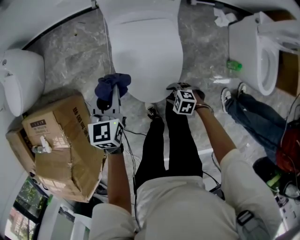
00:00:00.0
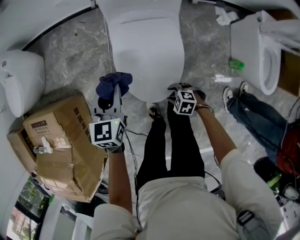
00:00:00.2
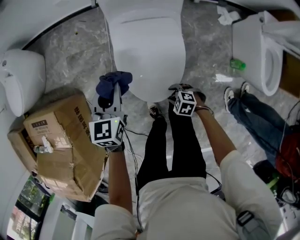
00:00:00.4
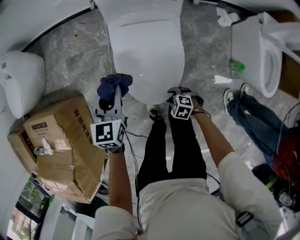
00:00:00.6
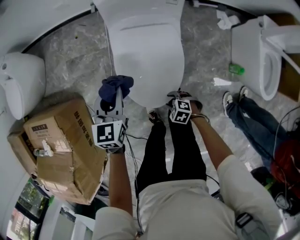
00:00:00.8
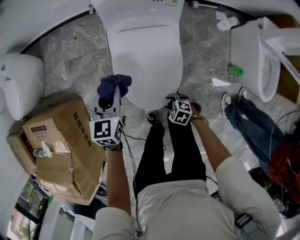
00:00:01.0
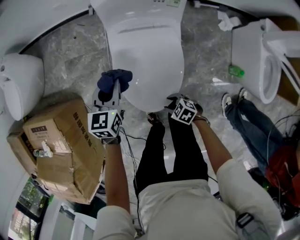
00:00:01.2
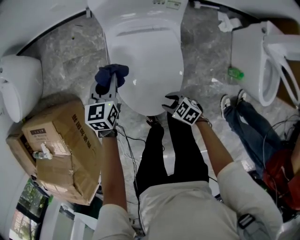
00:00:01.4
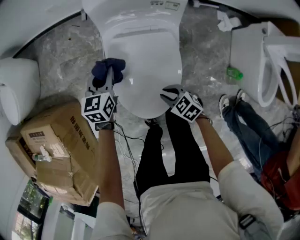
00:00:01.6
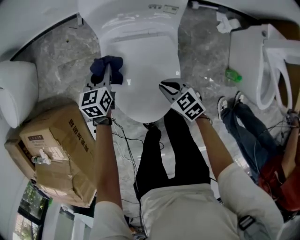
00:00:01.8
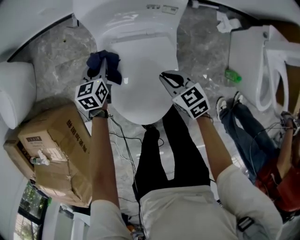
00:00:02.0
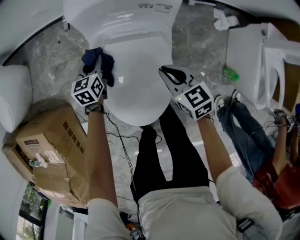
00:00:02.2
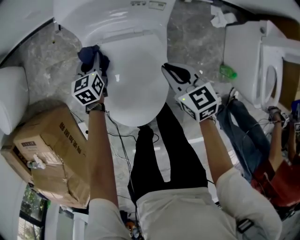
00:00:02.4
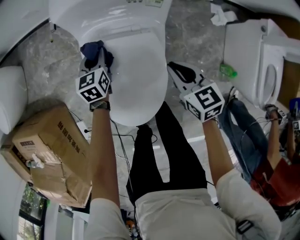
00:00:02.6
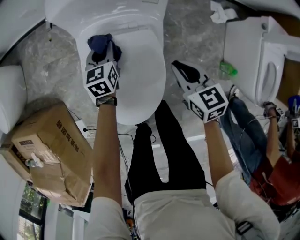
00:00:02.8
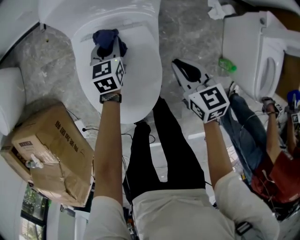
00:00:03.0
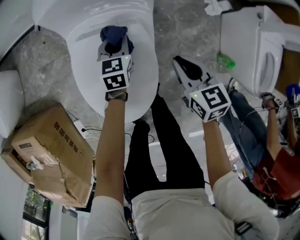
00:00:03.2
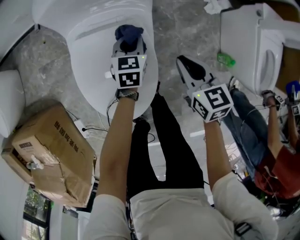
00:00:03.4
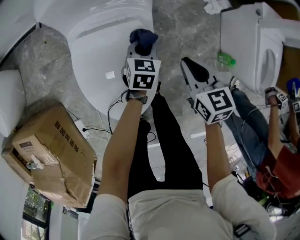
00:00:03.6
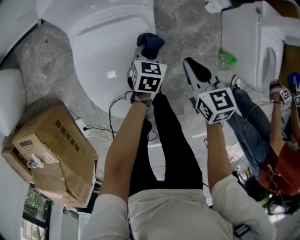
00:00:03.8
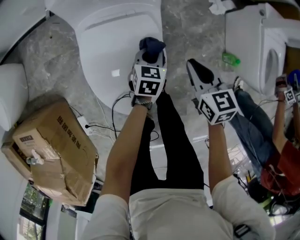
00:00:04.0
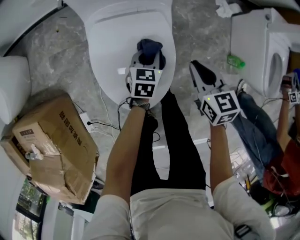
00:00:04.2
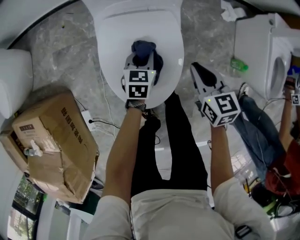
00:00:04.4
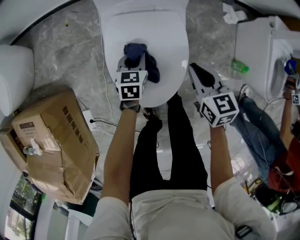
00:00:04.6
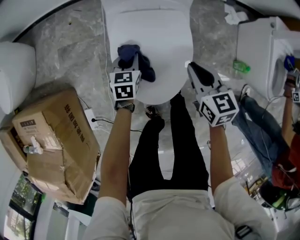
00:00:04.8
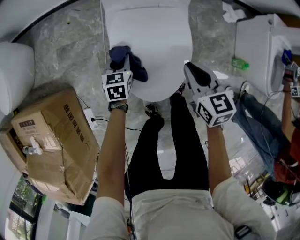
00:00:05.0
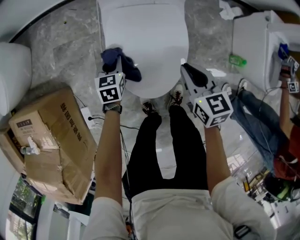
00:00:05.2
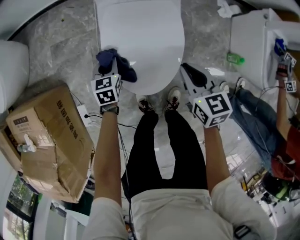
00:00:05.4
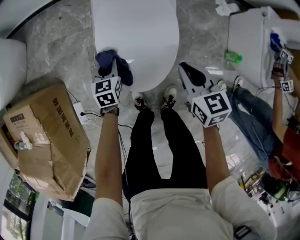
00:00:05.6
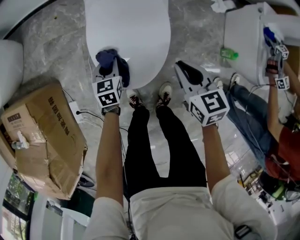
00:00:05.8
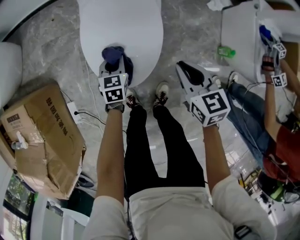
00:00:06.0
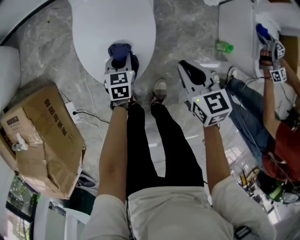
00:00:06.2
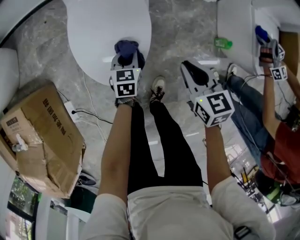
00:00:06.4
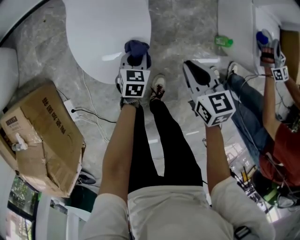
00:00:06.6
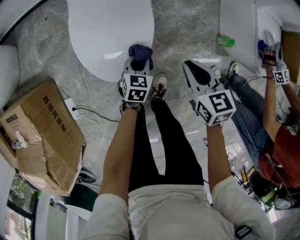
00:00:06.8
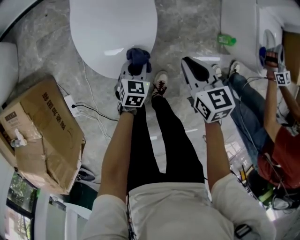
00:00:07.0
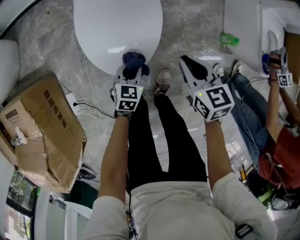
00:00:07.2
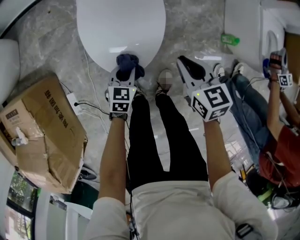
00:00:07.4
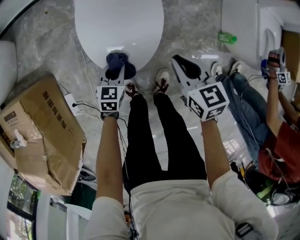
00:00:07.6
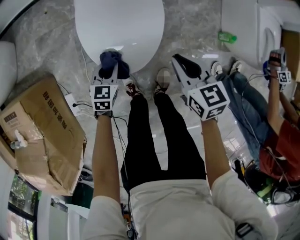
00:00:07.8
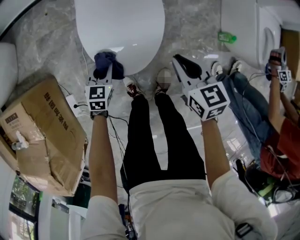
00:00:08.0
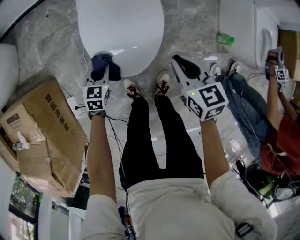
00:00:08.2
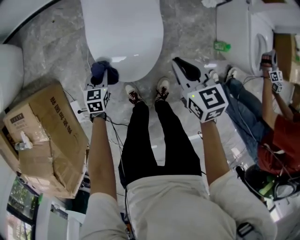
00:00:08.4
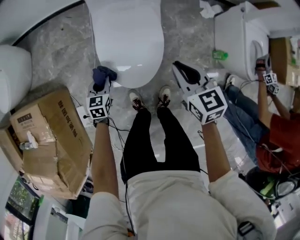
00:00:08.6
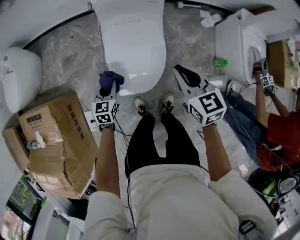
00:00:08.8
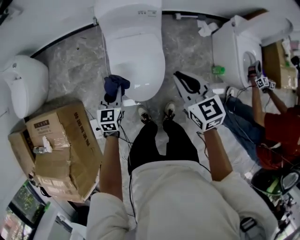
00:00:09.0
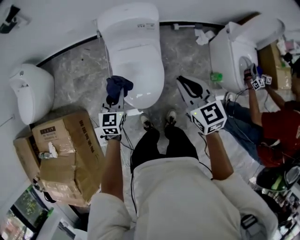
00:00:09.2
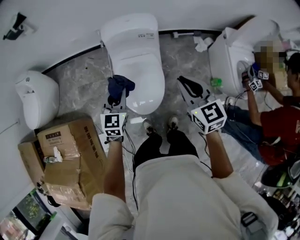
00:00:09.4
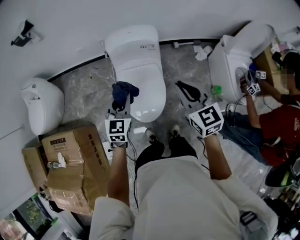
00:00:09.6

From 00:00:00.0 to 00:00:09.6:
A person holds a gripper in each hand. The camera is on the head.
From 00:00:00.0 to 00:00:01.6: The right gripper goes some 10 cm forward and to the right, swivels some 30 degrees, and closes its fingers. The left gripper shifts approximately 20 cm downward, forward and to the right.
From 00:00:01.6 to 00:00:03.2: The right gripper goes roughly 25 cm to the right, forward and upward, and swivels roughly 40 degrees, while the left gripper heads to the right and downward, covering some 25 cm.
From 00:00:03.2 to 00:00:04.8: The right gripper travels to the left and backward by approximately 15 cm. The left gripper shifts roughly 20 cm backward and to the left.
From 00:00:04.8 to 00:00:06.4: Both grippers travel together to the right and backward, about 20 cm.
From 00:00:06.4 to 00:00:08.0: The left gripper shifts some 15 cm to the left and backward. Meanwhile the right gripper goes approximately 10 cm to the left.
From 00:00:08.0 to 00:00:09.6: The grippers both shift upward by about 40 cm. The left gripper rotates approximately 30 degrees. Meanwhile the right gripper turns by about 30 degrees.

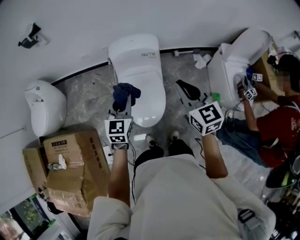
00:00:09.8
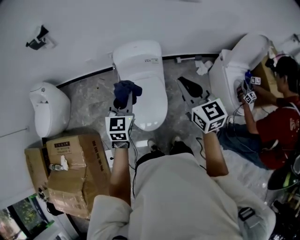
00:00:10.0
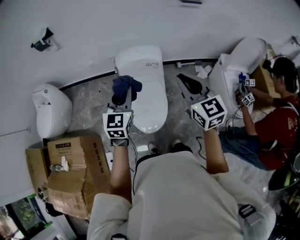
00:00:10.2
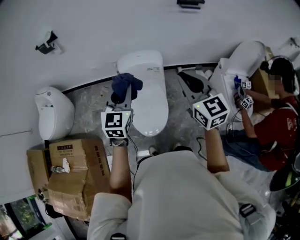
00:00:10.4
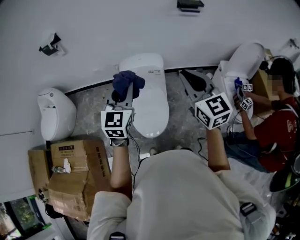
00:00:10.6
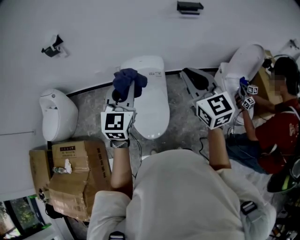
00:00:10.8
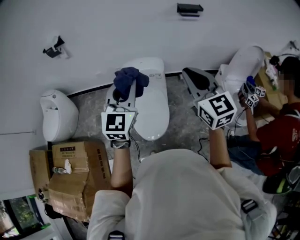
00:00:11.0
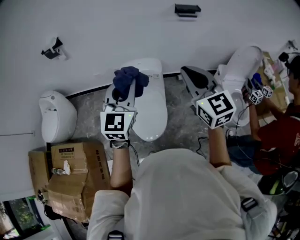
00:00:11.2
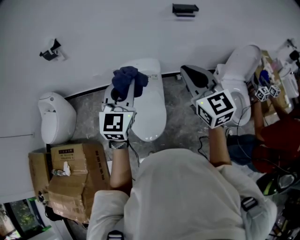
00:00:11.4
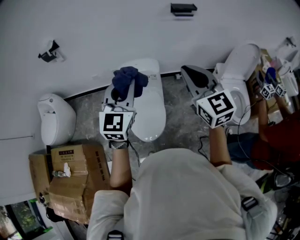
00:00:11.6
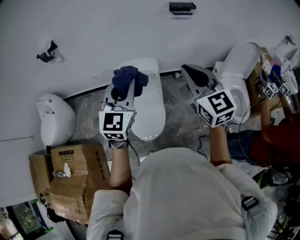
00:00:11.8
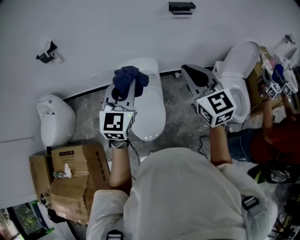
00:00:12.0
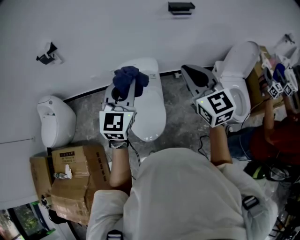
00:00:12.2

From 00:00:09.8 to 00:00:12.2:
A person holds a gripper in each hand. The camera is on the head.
From 00:00:09.8 to 00:00:11.0: The two grippers go roughly 20 cm upward. The left gripper changes its angle by approximately 20 degrees.
From 00:00:11.0 to 00:00:12.2: The grippers make only small movements.

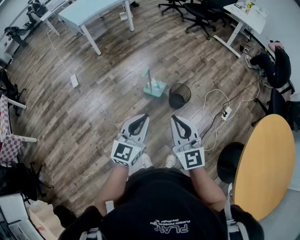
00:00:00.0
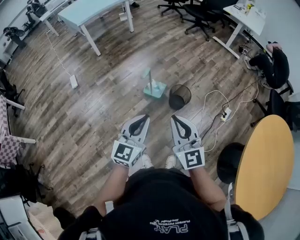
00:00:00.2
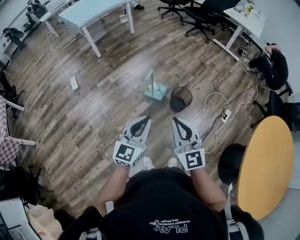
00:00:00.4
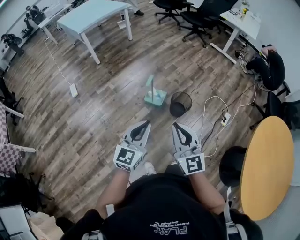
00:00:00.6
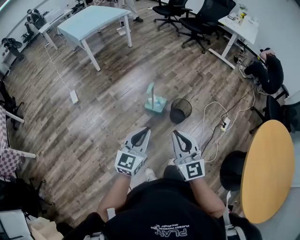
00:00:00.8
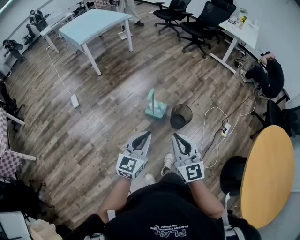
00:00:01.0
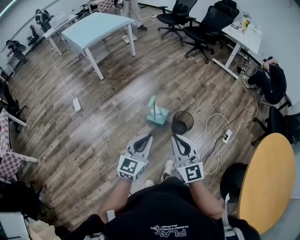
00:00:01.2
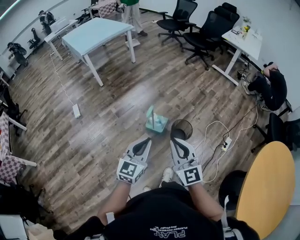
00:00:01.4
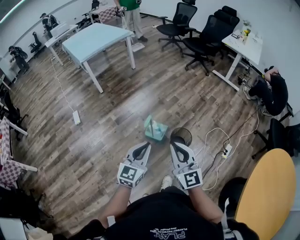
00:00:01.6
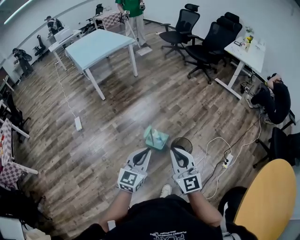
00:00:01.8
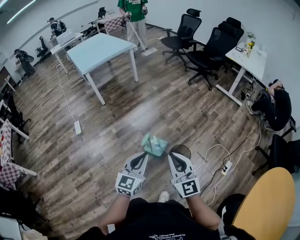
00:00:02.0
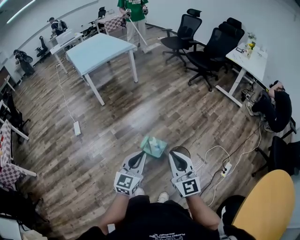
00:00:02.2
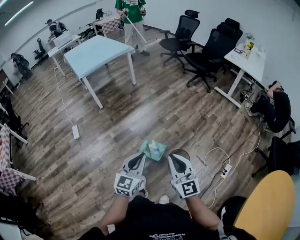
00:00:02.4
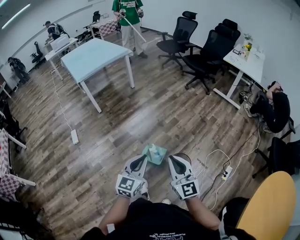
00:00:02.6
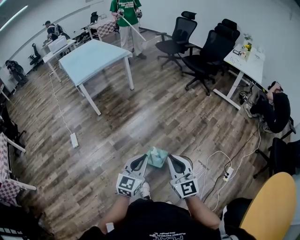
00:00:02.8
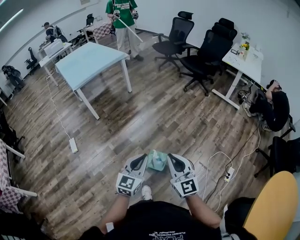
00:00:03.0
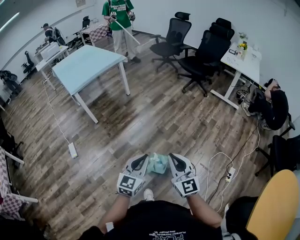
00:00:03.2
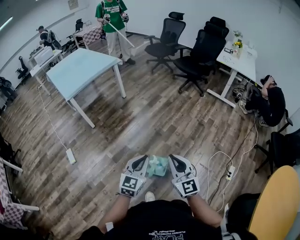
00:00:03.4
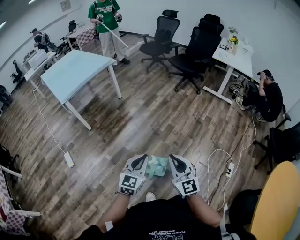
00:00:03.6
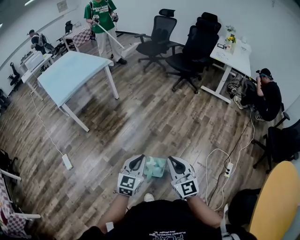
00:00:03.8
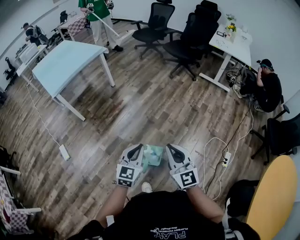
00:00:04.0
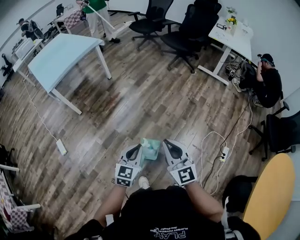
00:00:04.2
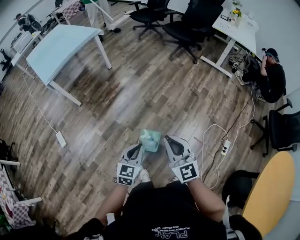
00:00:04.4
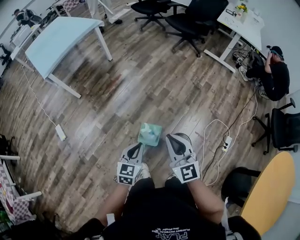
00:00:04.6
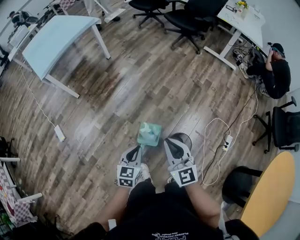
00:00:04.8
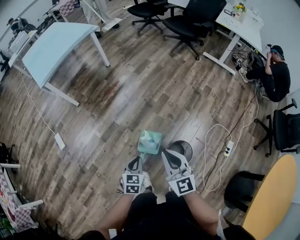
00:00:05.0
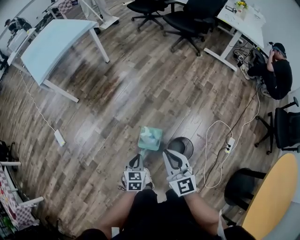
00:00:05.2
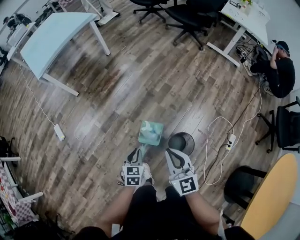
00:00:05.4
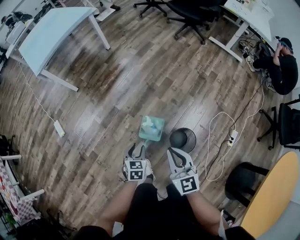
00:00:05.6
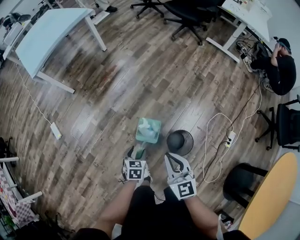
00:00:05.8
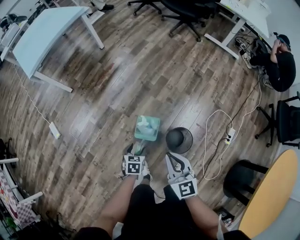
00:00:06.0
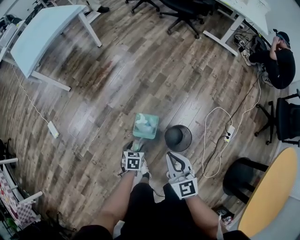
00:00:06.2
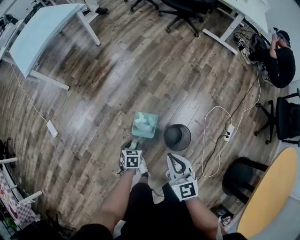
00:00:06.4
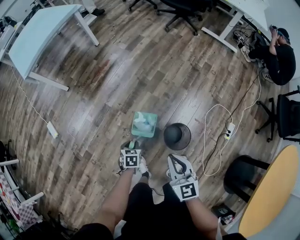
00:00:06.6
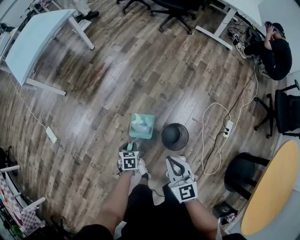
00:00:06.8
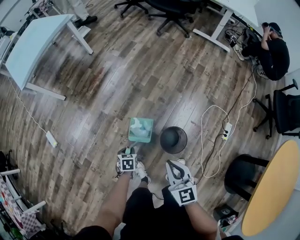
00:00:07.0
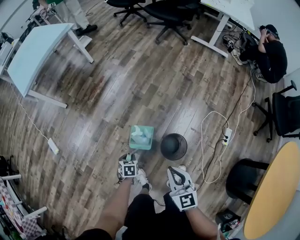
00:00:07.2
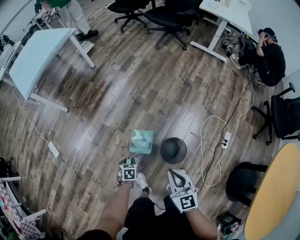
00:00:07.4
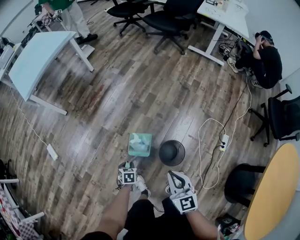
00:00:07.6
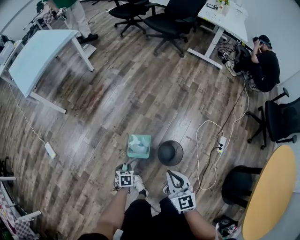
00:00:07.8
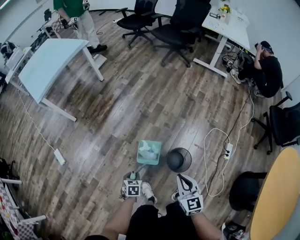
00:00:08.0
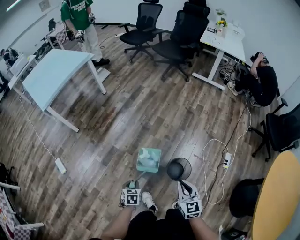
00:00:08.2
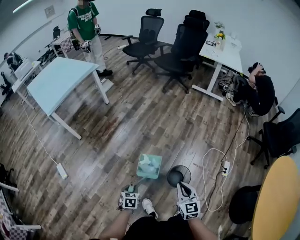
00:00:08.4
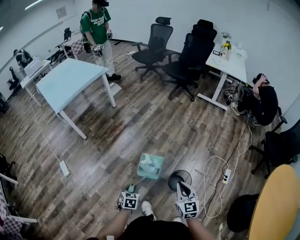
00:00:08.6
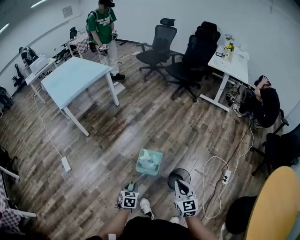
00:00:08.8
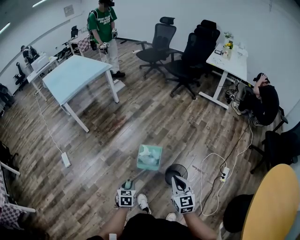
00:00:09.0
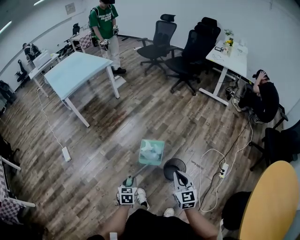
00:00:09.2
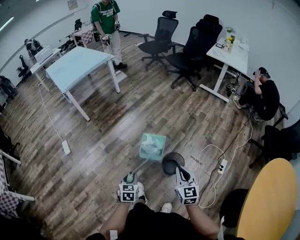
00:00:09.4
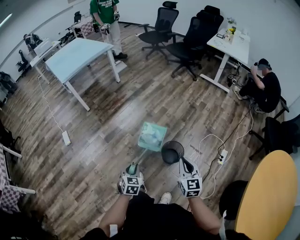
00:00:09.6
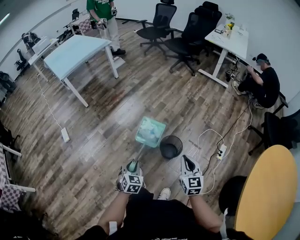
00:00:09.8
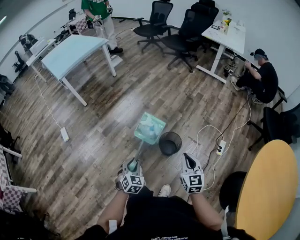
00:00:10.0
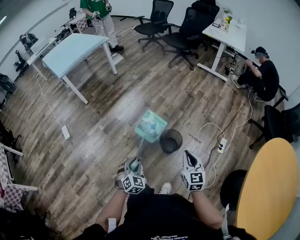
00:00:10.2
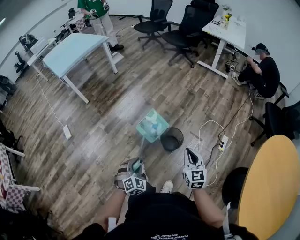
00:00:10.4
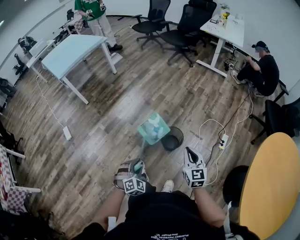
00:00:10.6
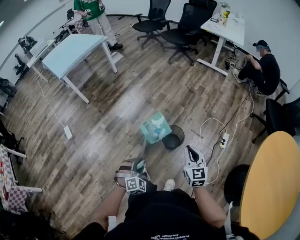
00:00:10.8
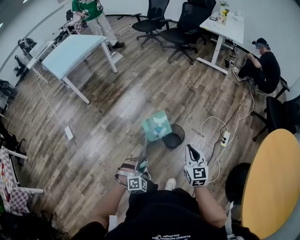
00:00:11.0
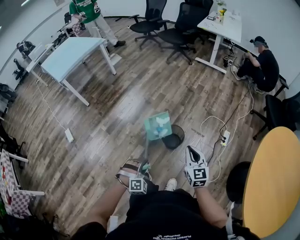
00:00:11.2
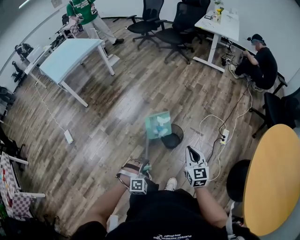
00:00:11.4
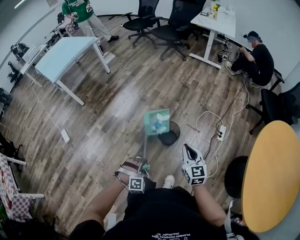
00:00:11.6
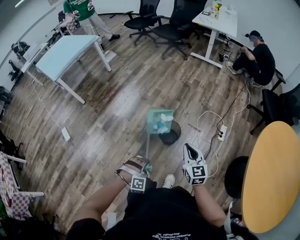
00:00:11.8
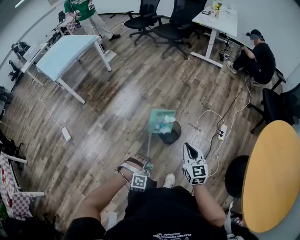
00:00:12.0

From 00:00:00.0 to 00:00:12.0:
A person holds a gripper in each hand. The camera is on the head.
From 00:00:00.0 to 00:00:01.6: The two grippers go approximately 15 cm forward.
From 00:00:01.6 to 00:00:03.0: Both grippers move forward, about 20 cm.
From 00:00:03.0 to 00:00:04.4: The left gripper travels downward and forward by roughly 15 cm; the right gripper moves forward, roughly 10 cm.
From 00:00:04.4 to 00:00:06.0: The right gripper is displaced downward by roughly 15 cm, while the left gripper travels downward by approximately 25 cm, tips its fingers downward by about 30 degrees, and opens up.
From 00:00:06.0 to 00:00:07.6: The right gripper is displaced to the right and backward by approximately 10 cm, while the left gripper goes some 5 cm downward, and closes its fingers.
From 00:00:07.6 to 00:00:09.0: The left gripper goes roughly 25 cm upward and backward, and changes its angle by approximately 20 degrees. Meanwhile the right gripper travels backward and upward by roughly 10 cm.
From 00:00:09.0 to 00:00:10.4: The left gripper travels backward and to the right by roughly 20 cm, and rolls clockwise, seen from behind, by some 50 degrees. The right gripper is displaced to the right and backward by some 15 cm.
From 00:00:10.4 to 00:00:12.0: The left gripper moves to the right, approximately 5 cm, and rolls clockwise, seen from behind, by some 50 degrees.
